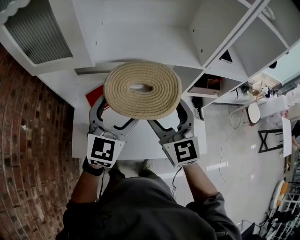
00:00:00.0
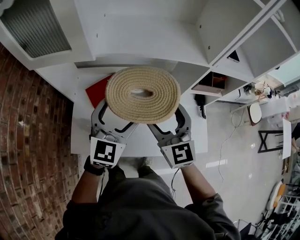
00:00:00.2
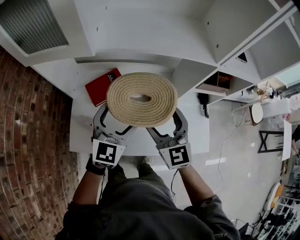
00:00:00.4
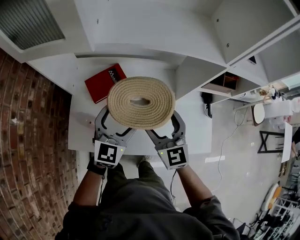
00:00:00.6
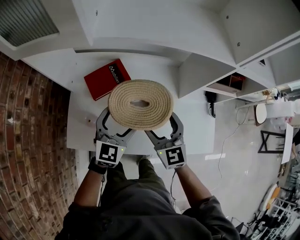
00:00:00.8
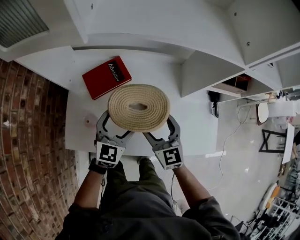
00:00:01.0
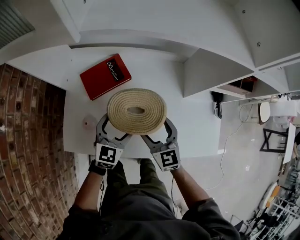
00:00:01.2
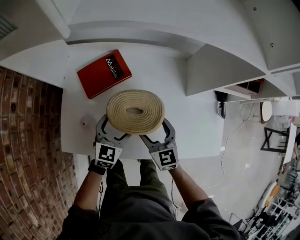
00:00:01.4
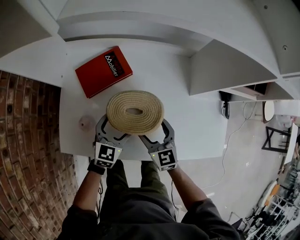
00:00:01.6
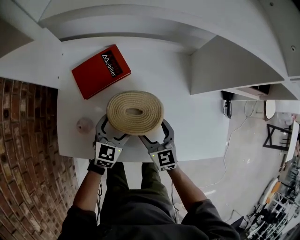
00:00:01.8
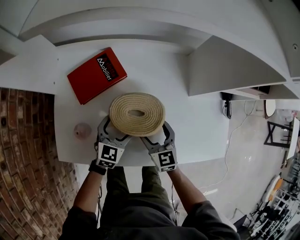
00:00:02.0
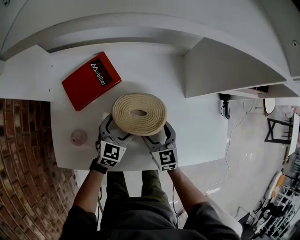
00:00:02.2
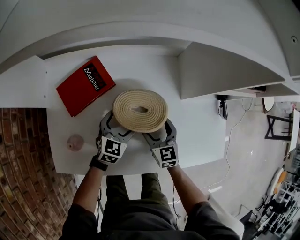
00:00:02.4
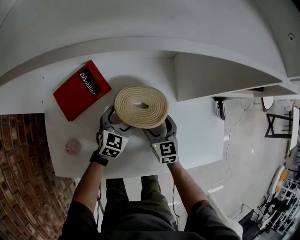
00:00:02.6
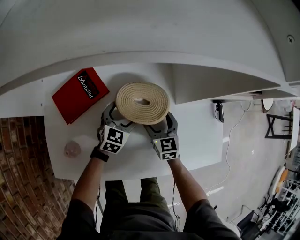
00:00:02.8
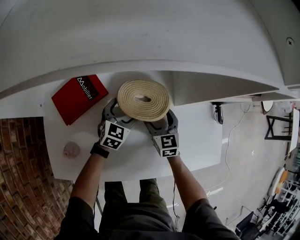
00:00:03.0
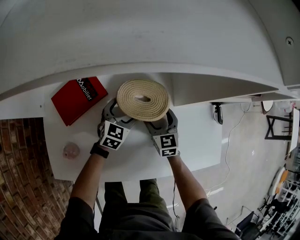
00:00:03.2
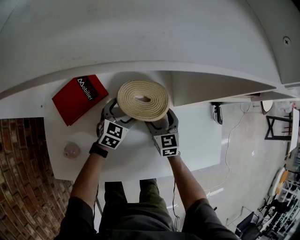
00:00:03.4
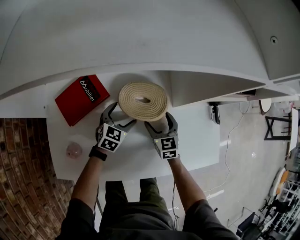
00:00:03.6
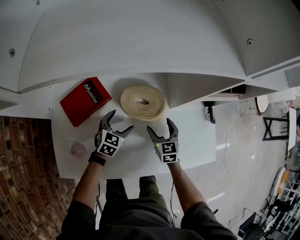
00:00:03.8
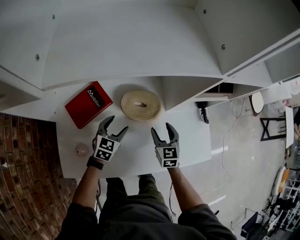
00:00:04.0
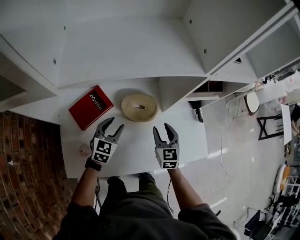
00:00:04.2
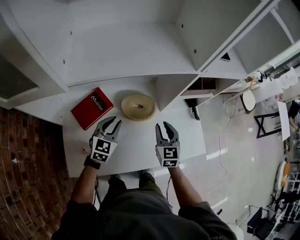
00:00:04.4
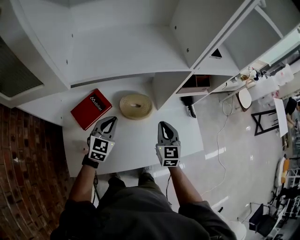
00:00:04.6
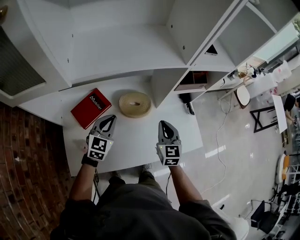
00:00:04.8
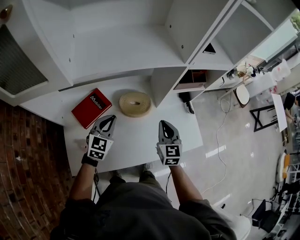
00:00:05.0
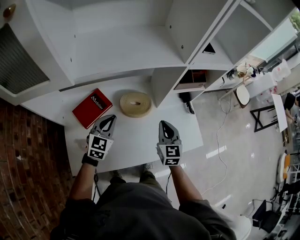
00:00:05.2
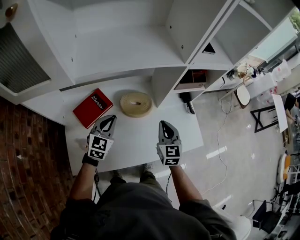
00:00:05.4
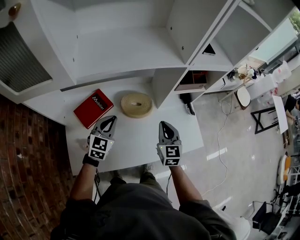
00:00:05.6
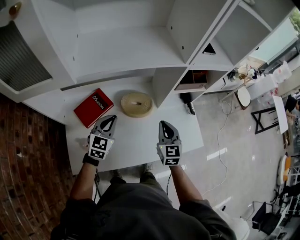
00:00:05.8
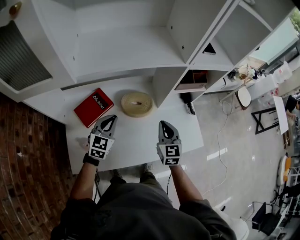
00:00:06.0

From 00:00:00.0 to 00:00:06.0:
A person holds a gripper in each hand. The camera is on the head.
From 00:00:00.0 to 00:00:01.6: The two grippers go about 40 cm downward. The right gripper changes its angle by roughly 20 degrees, while the left gripper swivels about 30 degrees.
From 00:00:01.6 to 00:00:03.0: Both grippers move forward, to the right and downward, about 20 cm.
From 00:00:03.0 to 00:00:04.4: The grippers both shift upward and backward by roughly 25 cm. The right gripper closes up; the left gripper closes.
From 00:00:04.4 to 00:00:06.0: The left gripper shifts by some 5 cm. The right gripper travels upward by about 5 cm.

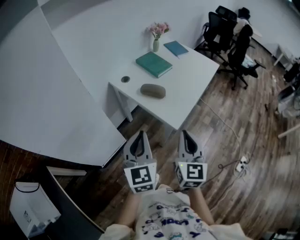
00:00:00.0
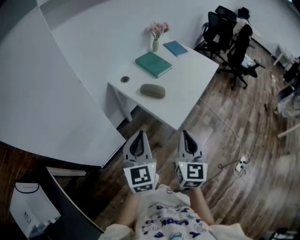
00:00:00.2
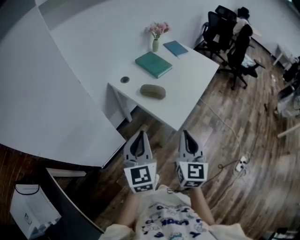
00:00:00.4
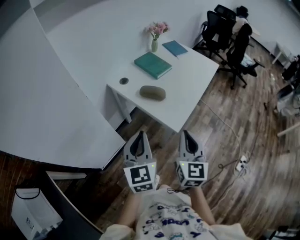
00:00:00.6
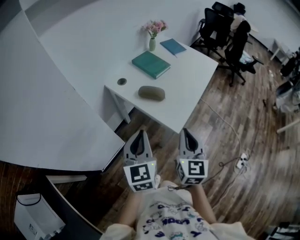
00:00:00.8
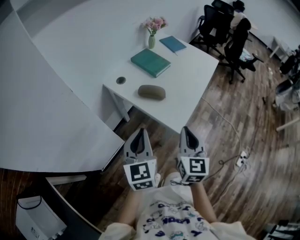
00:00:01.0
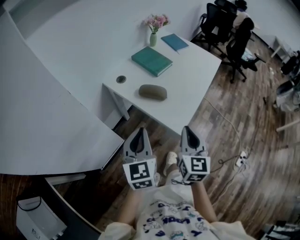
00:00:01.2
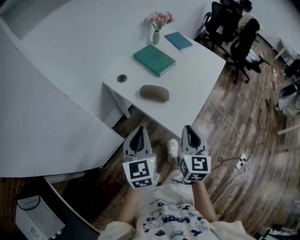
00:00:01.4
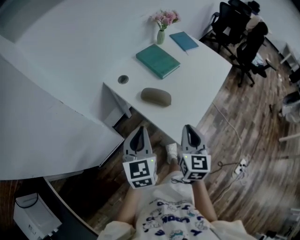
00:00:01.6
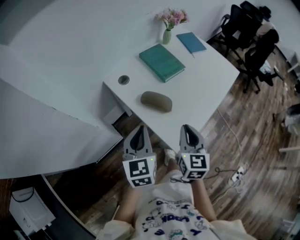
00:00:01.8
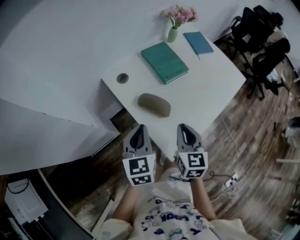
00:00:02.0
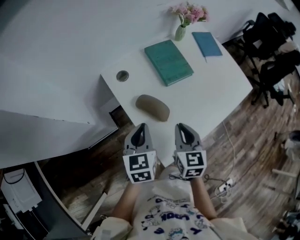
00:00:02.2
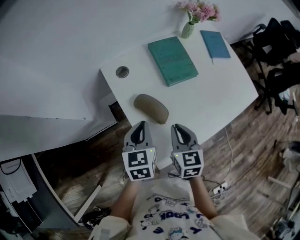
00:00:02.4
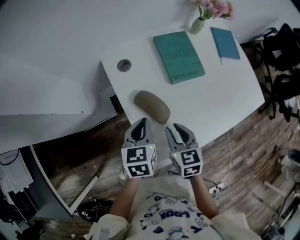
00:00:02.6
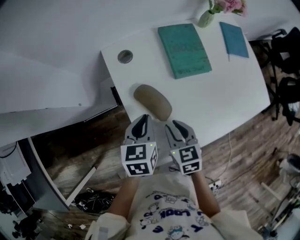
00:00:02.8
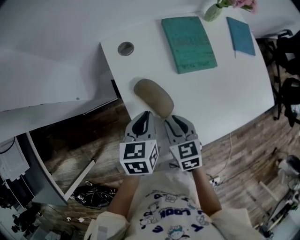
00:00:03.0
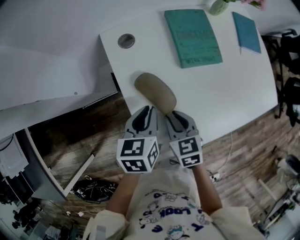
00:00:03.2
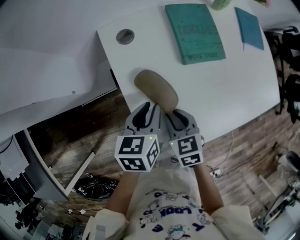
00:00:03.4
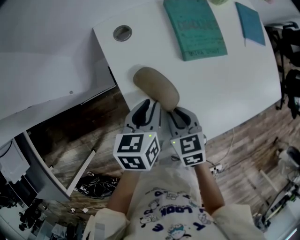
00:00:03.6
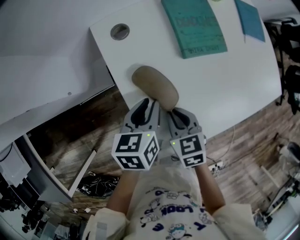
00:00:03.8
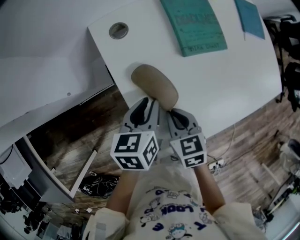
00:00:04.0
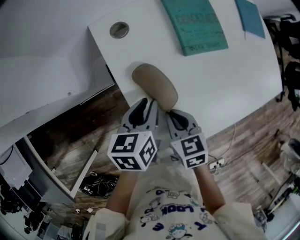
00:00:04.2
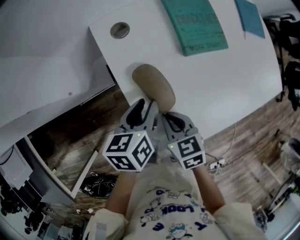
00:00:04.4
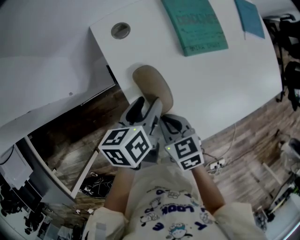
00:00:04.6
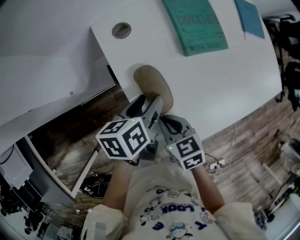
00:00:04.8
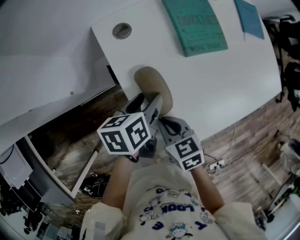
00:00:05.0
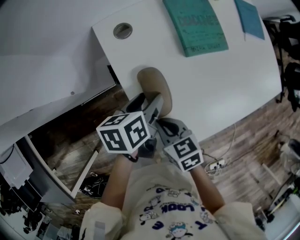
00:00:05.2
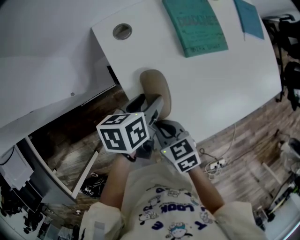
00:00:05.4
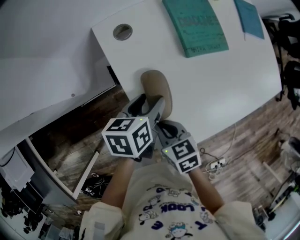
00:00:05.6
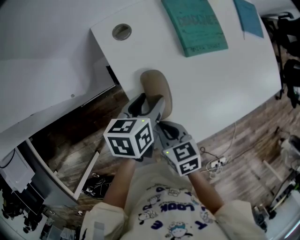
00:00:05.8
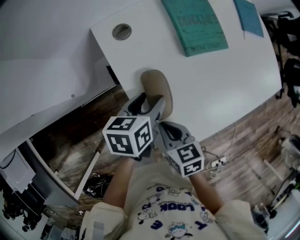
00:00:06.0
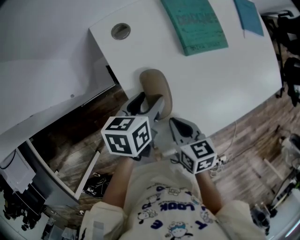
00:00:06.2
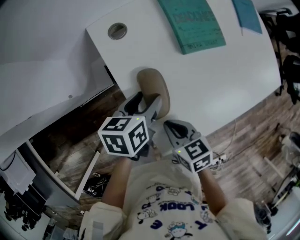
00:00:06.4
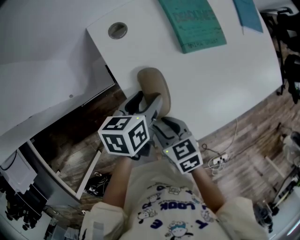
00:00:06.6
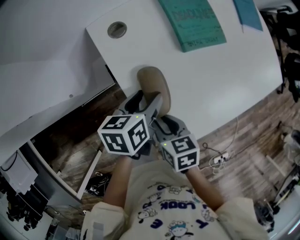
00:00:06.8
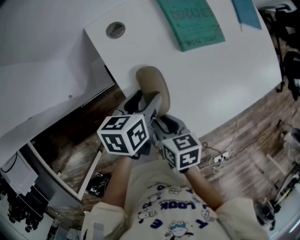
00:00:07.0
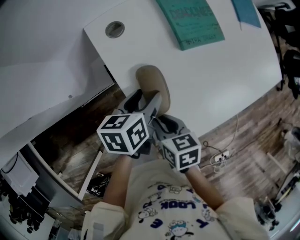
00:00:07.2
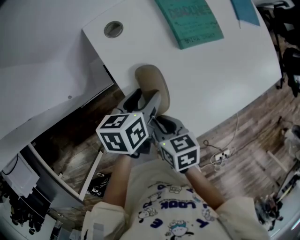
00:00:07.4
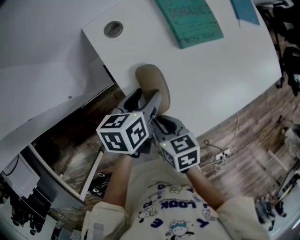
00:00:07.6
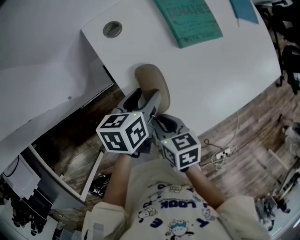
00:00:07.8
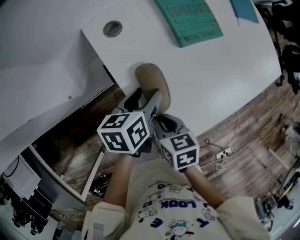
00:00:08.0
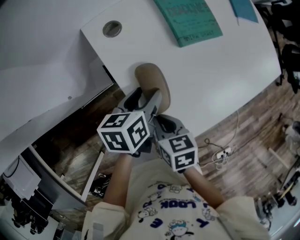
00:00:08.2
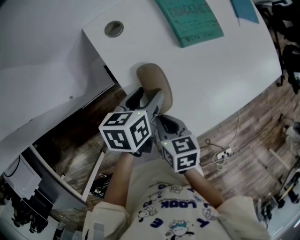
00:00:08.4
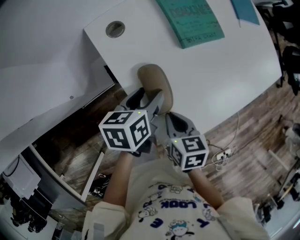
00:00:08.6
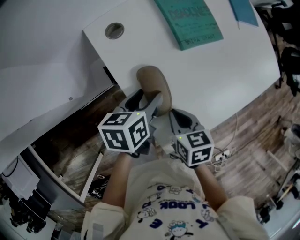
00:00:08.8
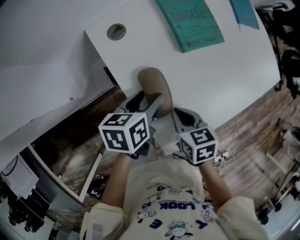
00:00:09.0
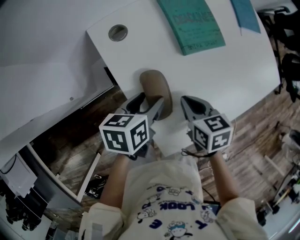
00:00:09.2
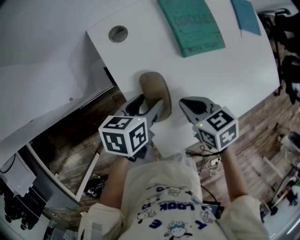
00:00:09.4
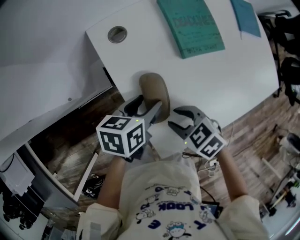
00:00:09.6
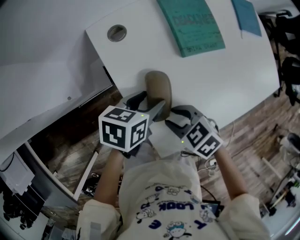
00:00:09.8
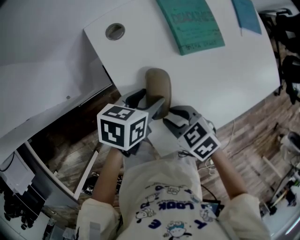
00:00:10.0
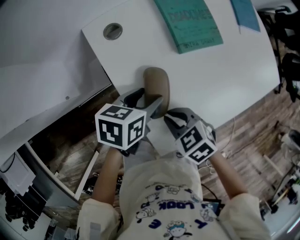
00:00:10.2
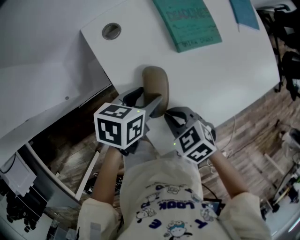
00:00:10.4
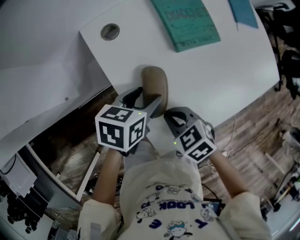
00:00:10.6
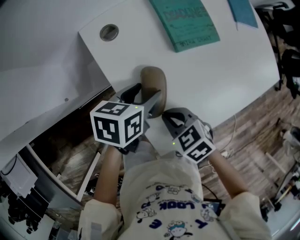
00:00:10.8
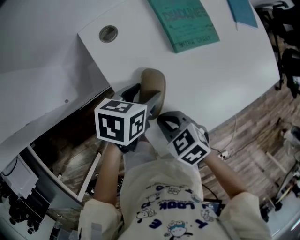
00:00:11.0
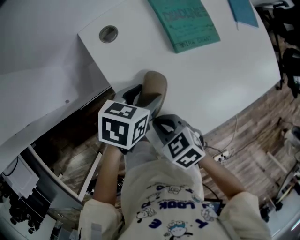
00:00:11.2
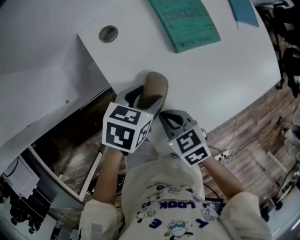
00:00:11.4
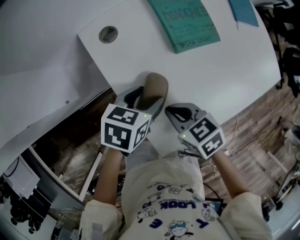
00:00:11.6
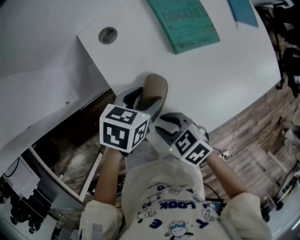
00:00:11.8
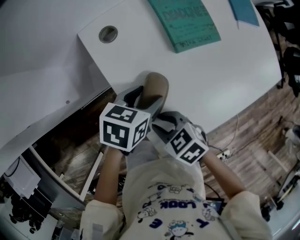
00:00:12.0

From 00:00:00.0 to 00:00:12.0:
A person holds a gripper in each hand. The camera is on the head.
From 00:00:00.0 to 00:00:01.6: The two grippers go some 15 cm forward and downward.
From 00:00:01.6 to 00:00:03.0: The right gripper is displaced downward by approximately 15 cm, rotates approximately 60 degrees, and opens, while the left gripper moves roughly 20 cm, and rotates approximately 40 degrees.
From 00:00:03.0 to 00:00:04.4: The left gripper opens up, while the right gripper moves about 5 cm, and closes its fingers.
From 00:00:04.4 to 00:00:06.0: The left gripper opens.
From 00:00:06.0 to 00:00:07.6: The grippers stay close to where they were, moving slightly.
From 00:00:07.6 to 00:00:09.0: The right gripper is displaced to the right by some 5 cm.
From 00:00:09.0 to 00:00:10.4: The right gripper swivels approximately 40 degrees, and opens and closes again.
From 00:00:10.4 to 00:00:12.0: The right gripper opens its fingers.

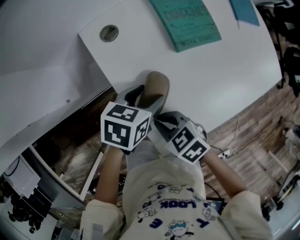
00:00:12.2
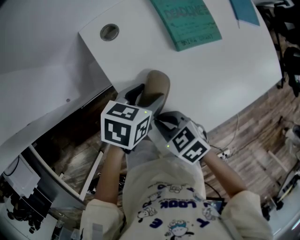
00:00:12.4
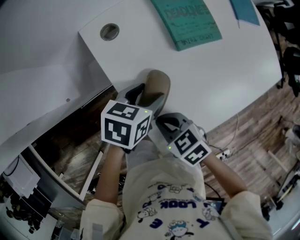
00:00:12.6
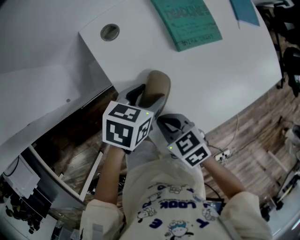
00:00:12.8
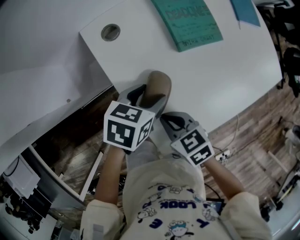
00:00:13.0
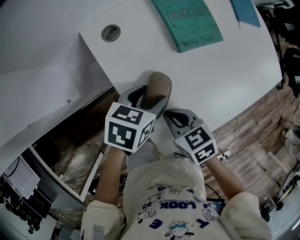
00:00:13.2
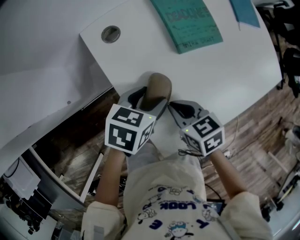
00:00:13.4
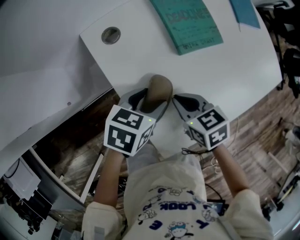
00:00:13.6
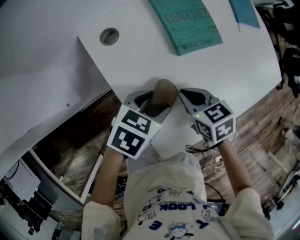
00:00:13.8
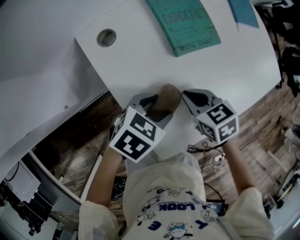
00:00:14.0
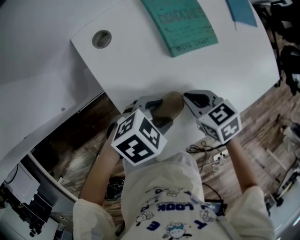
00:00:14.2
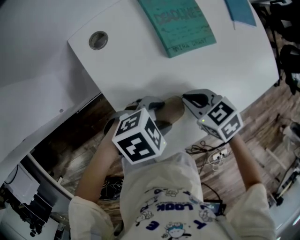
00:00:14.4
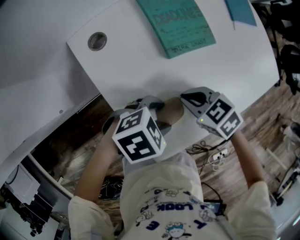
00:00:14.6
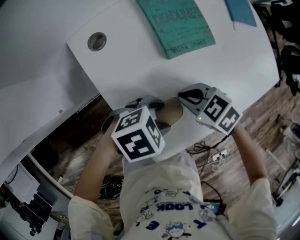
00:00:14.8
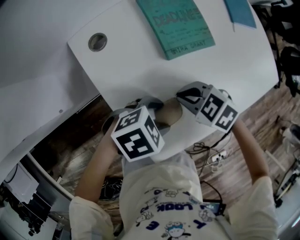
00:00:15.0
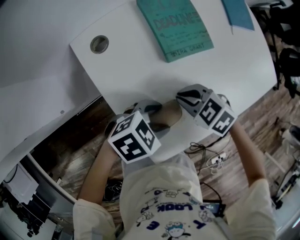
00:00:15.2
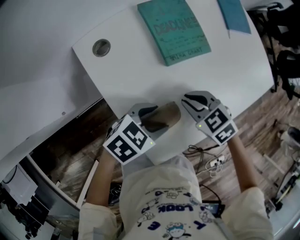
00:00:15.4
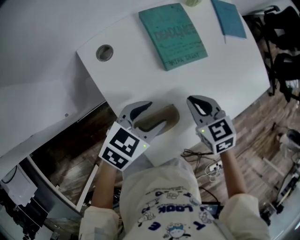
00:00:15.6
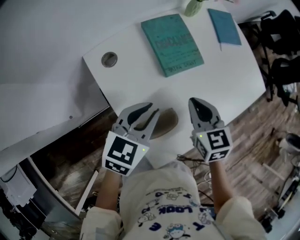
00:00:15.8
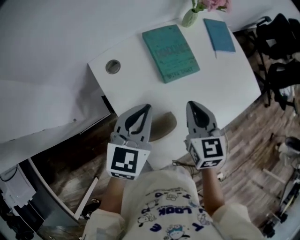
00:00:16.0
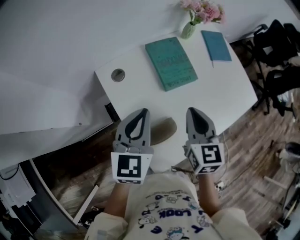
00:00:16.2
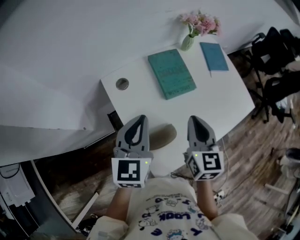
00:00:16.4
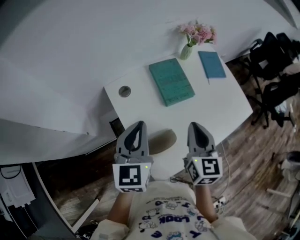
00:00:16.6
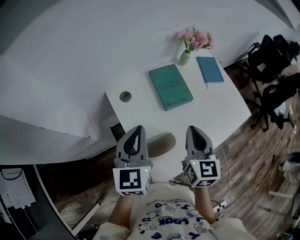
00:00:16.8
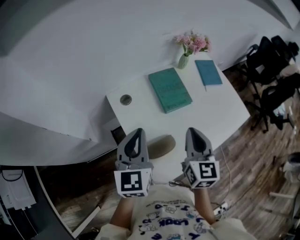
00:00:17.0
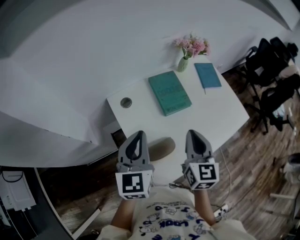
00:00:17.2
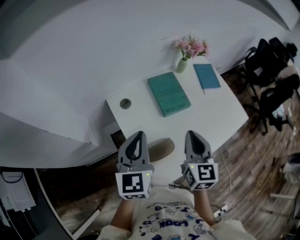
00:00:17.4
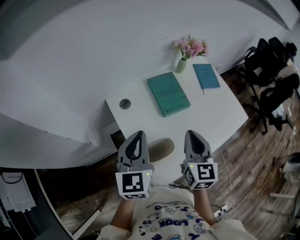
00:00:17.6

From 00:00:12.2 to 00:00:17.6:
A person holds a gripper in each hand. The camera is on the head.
From 00:00:12.2 to 00:00:13.6: The right gripper shifts by about 10 cm, and rotates about 20 degrees.
From 00:00:13.6 to 00:00:15.0: The left gripper shifts by some 10 cm, and changes its angle by roughly 40 degrees. Meanwhile the right gripper changes its angle by approximately 40 degrees.
From 00:00:15.0 to 00:00:16.2: Both grippers move upward, roughly 20 cm. The left gripper angles its fingers upward, by about 30 degrees, and closes, while the right gripper angles its fingers upward, by some 30 degrees.
From 00:00:16.2 to 00:00:17.6: Both grippers move upward, some 5 cm.
